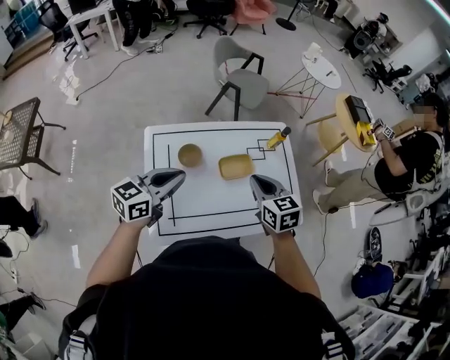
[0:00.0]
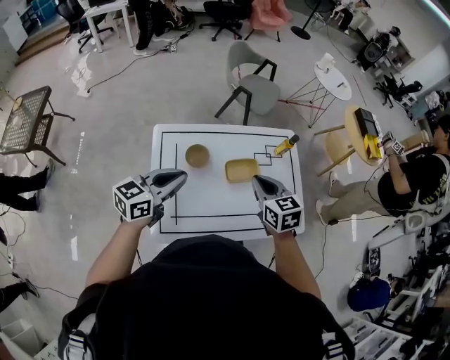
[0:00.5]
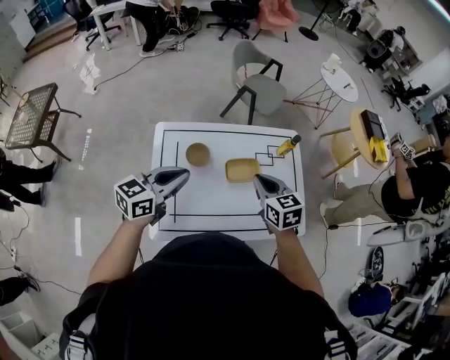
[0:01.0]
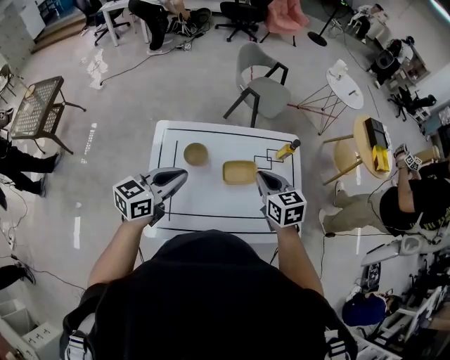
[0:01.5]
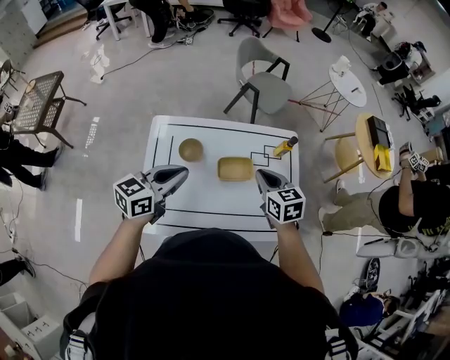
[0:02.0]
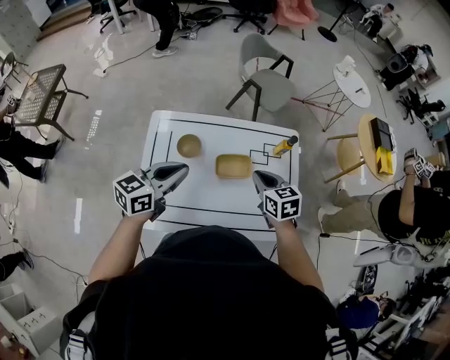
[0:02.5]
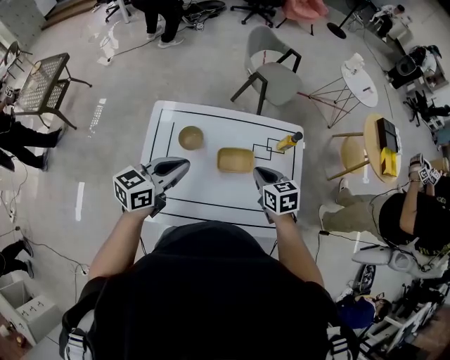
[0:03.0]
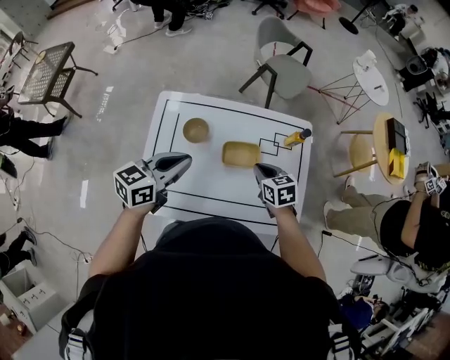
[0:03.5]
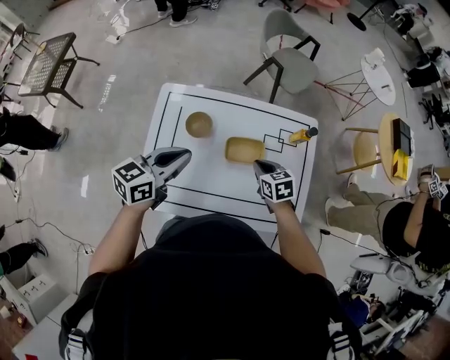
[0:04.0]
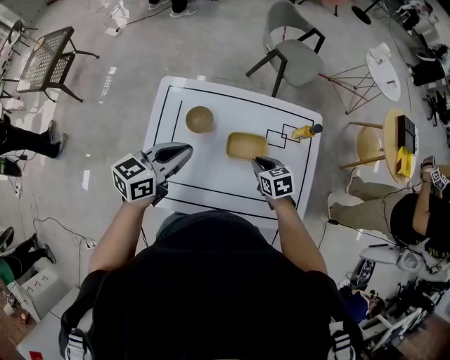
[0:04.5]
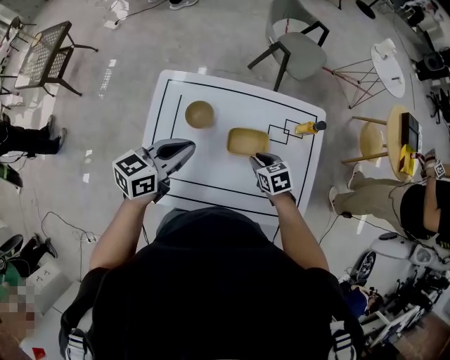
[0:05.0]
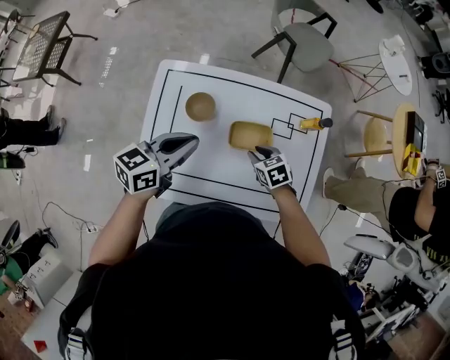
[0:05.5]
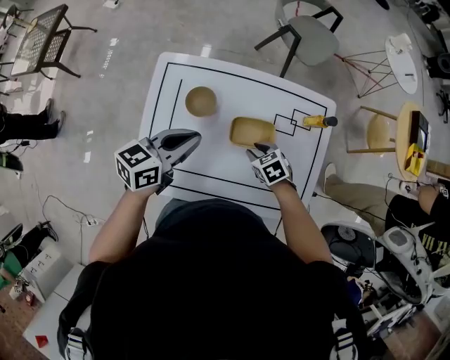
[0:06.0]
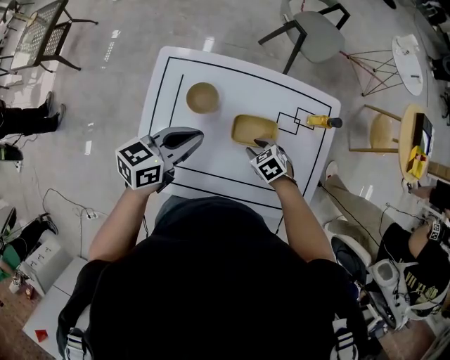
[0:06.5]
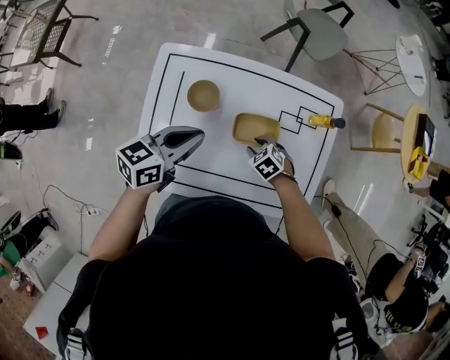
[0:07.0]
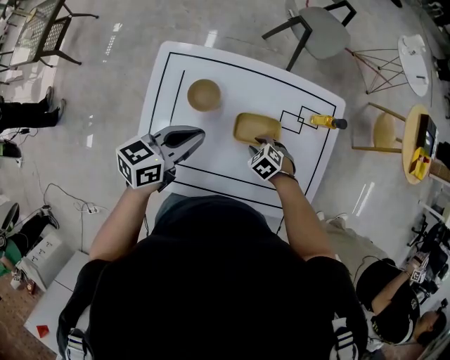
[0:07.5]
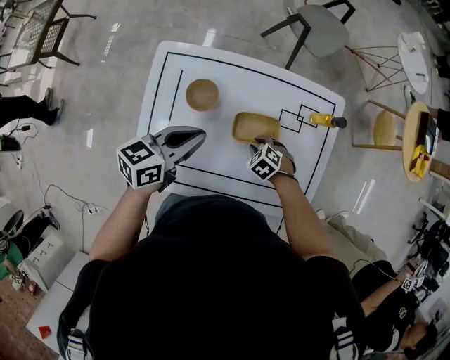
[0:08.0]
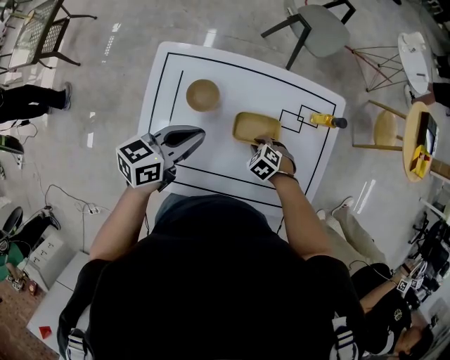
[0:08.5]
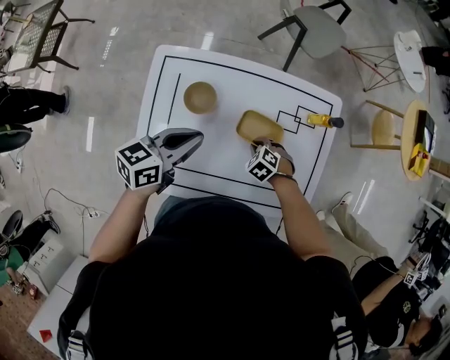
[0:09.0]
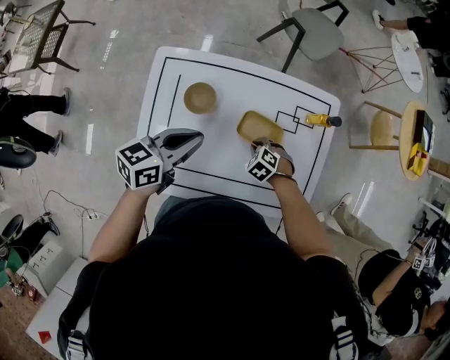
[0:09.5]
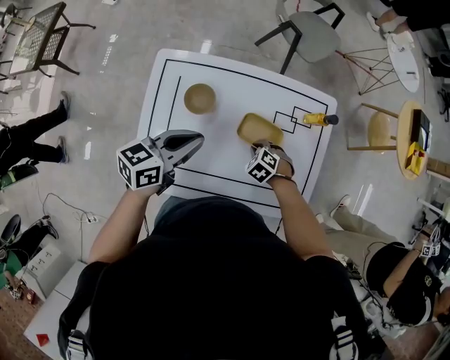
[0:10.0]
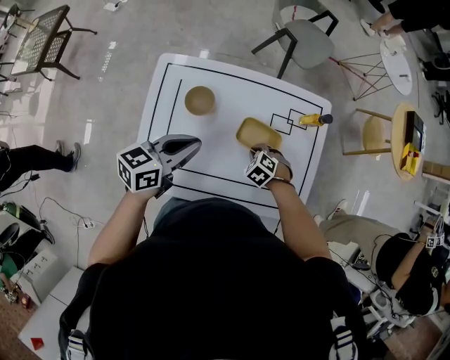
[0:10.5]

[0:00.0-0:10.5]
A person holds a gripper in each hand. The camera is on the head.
0.0 to 2.0 s: The left gripper moves to the right, about 5 cm. The right gripper heads forward and to the right, covering some 10 cm.
2.0 to 4.0 s: The right gripper is displaced downward by approximately 15 cm.
4.0 to 6.5 s: The left gripper shifts roughly 5 cm downward. Meanwhile the right gripper goes approximately 10 cm downward, turns by about 30 degrees, and opens.
6.5 to 8.5 s: There are only small adjustments of the grippers.
8.5 to 10.5 s: The grippers stay close to where they were, moving slightly.

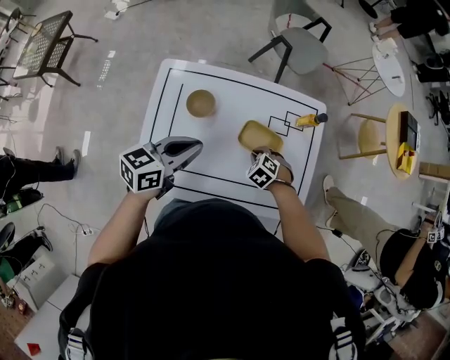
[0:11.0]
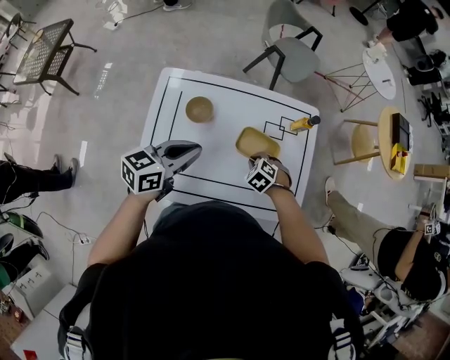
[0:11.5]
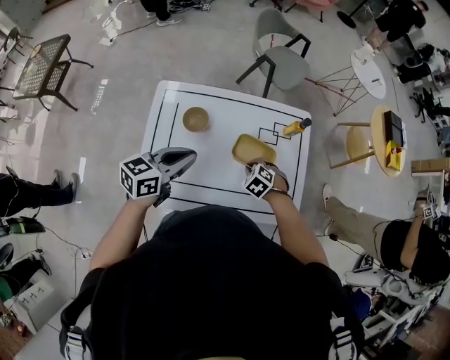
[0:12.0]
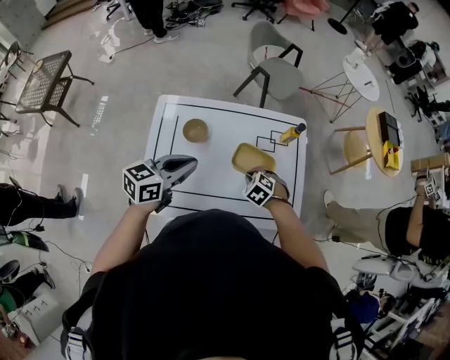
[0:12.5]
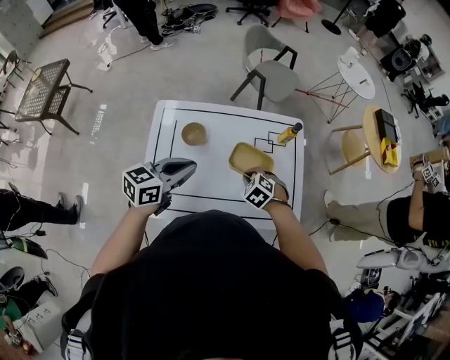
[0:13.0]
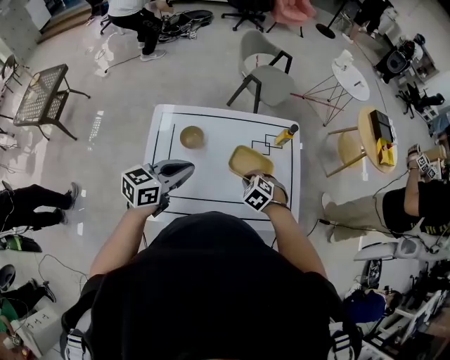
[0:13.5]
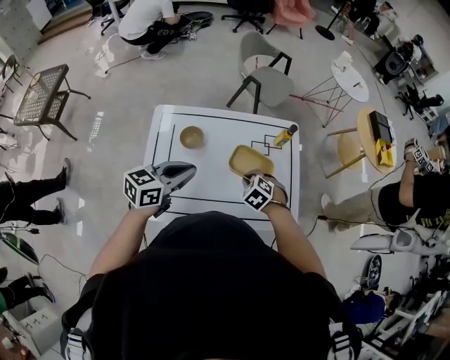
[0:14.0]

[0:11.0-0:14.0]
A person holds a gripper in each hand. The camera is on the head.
11.0 to 12.5 s: The right gripper goes about 5 cm upward; the left gripper ends up about 5 cm from where it was.
12.5 to 14.0 s: The grippers stay close to where they were, moving slightly.

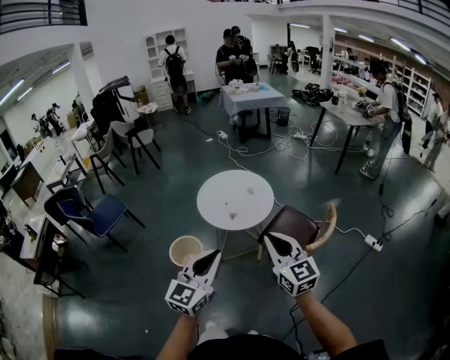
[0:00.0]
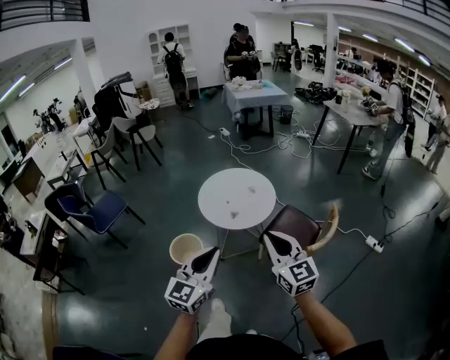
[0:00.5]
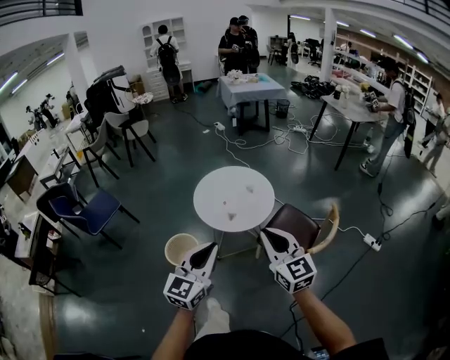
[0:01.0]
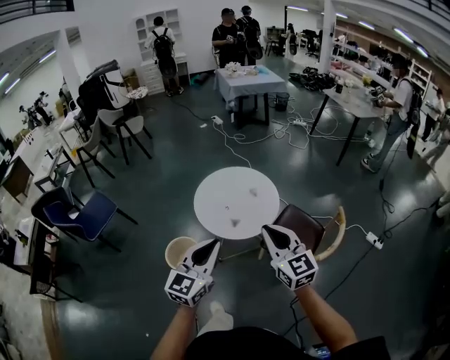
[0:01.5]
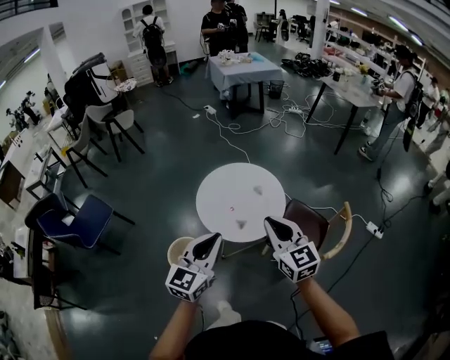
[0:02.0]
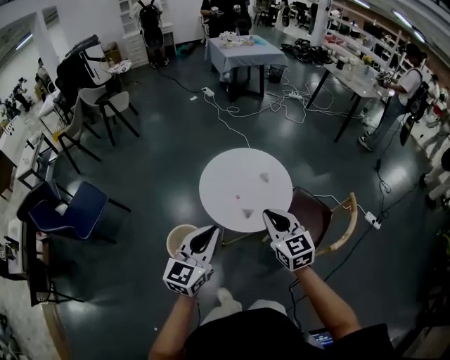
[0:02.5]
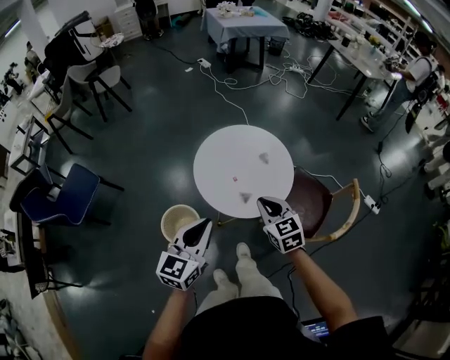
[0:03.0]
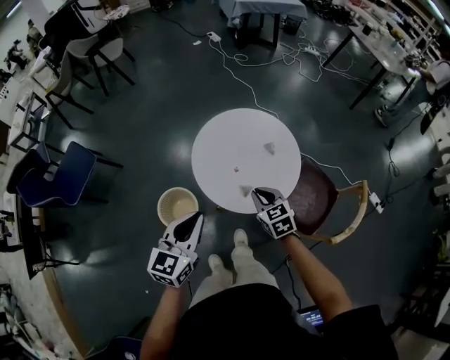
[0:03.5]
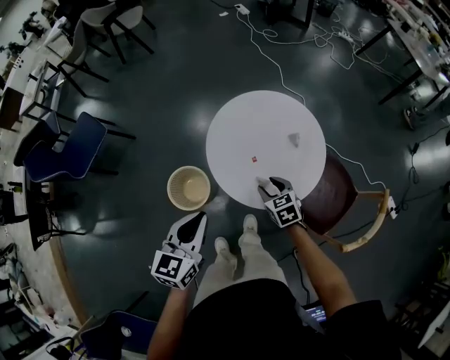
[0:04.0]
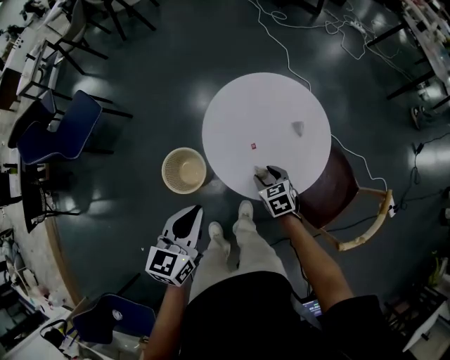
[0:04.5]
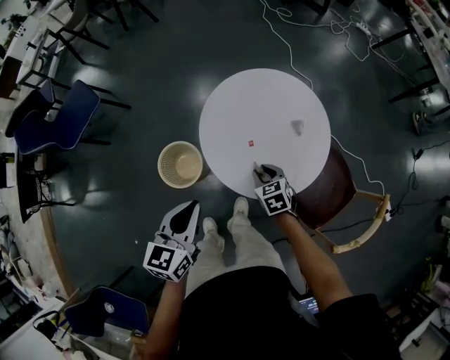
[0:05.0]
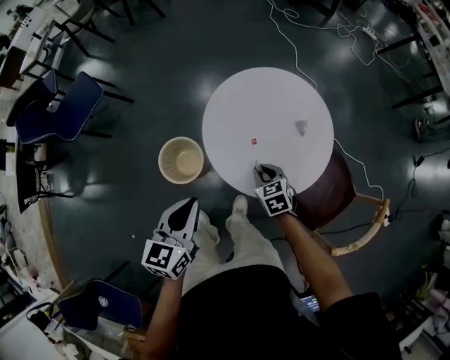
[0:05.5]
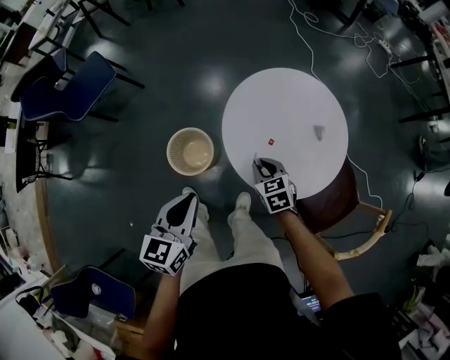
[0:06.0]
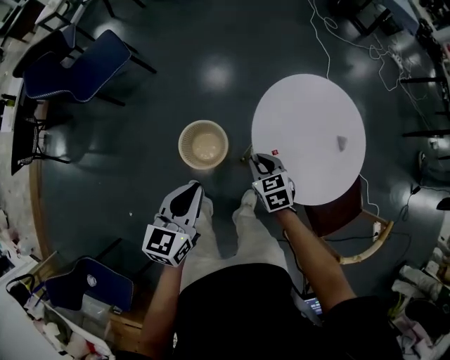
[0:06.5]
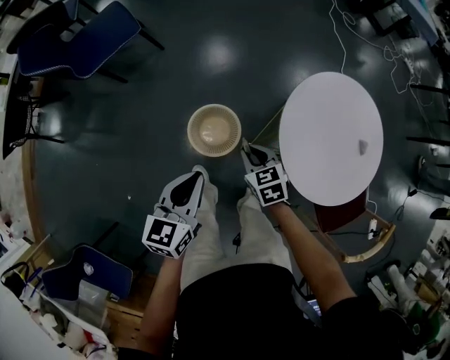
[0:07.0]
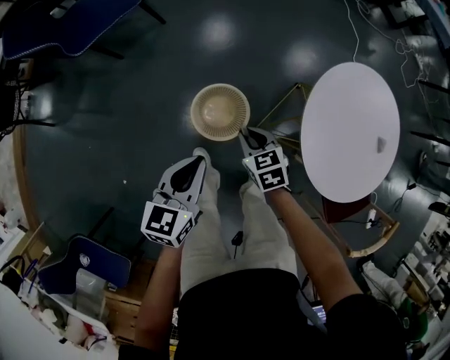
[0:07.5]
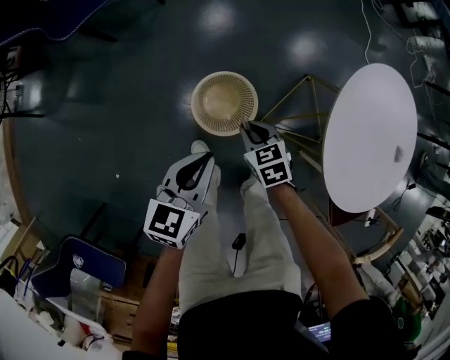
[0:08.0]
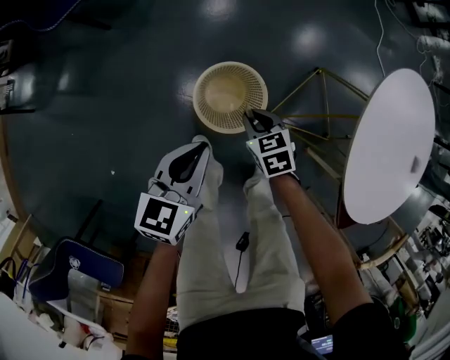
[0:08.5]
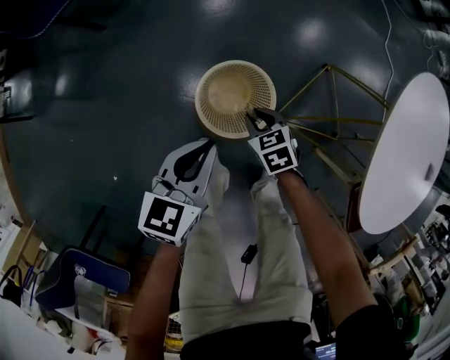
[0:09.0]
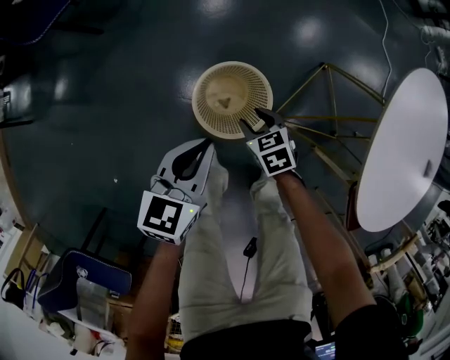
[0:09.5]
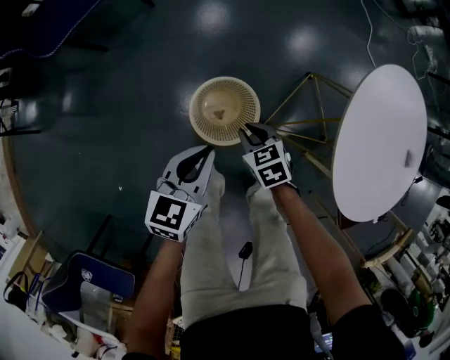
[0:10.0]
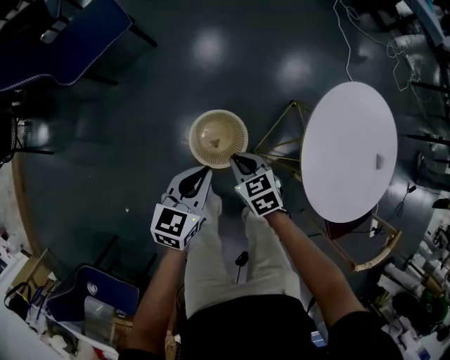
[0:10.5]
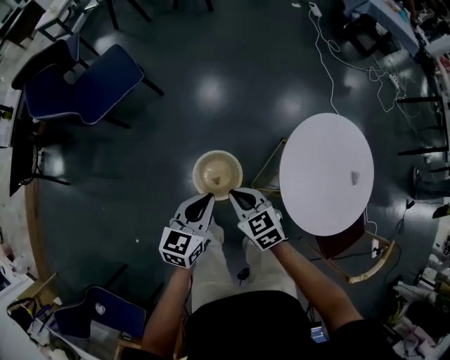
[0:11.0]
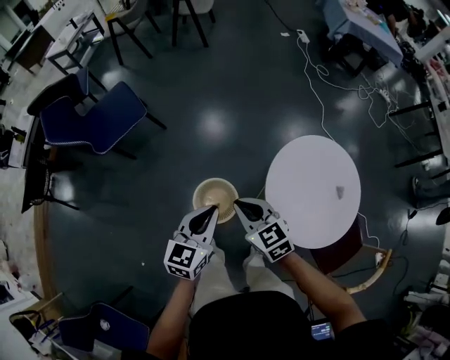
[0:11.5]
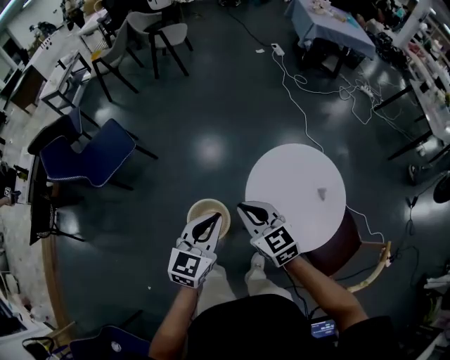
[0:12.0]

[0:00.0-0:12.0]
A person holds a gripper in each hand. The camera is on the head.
0.0 to 2.0 s: Both grippers move forward, about 30 cm.
2.0 to 4.0 s: The left gripper heads downward, forward and to the left, covering some 30 cm, and rotates about 30 degrees. Meanwhile the right gripper shifts roughly 50 cm downward and forward, tilts its fingers approximately 40 degrees downward, and opens up.
4.0 to 6.0 s: The right gripper shifts approximately 10 cm to the left, and closes its fingers, while the left gripper heads to the left and downward, covering approximately 10 cm.
6.0 to 8.0 s: The right gripper travels to the left and downward by approximately 40 cm, while the left gripper goes some 35 cm downward, to the left and forward.
8.0 to 10.0 s: The left gripper goes roughly 10 cm downward and forward. The right gripper moves downward, approximately 5 cm, and opens, then closes once more.
10.0 to 12.0 s: The left gripper heads upward and to the right, covering approximately 50 cm, and turns by roughly 30 degrees; the right gripper travels upward by roughly 50 cm, and angles its fingers upward, by some 30 degrees.

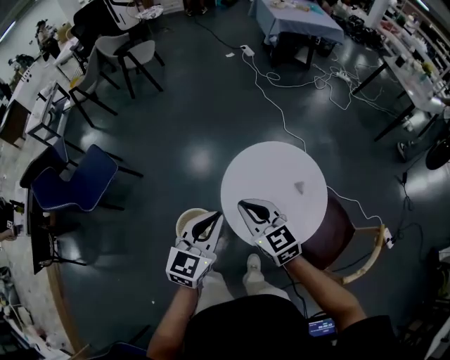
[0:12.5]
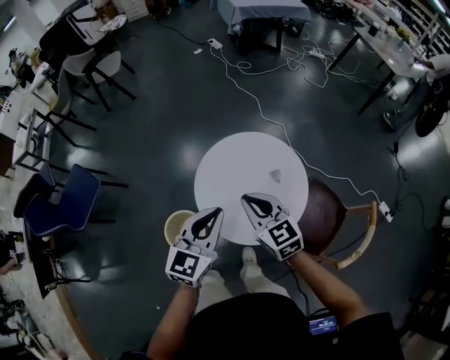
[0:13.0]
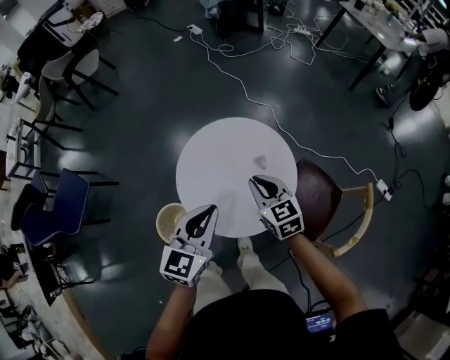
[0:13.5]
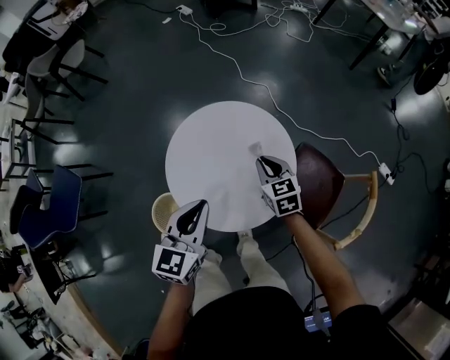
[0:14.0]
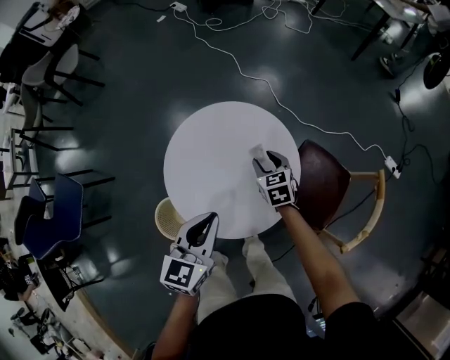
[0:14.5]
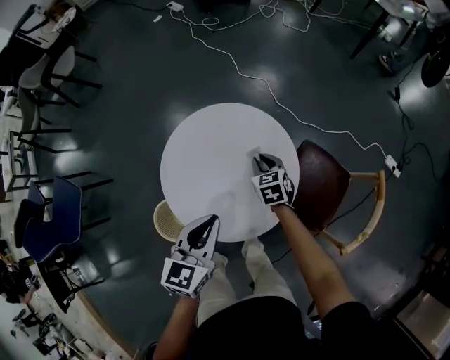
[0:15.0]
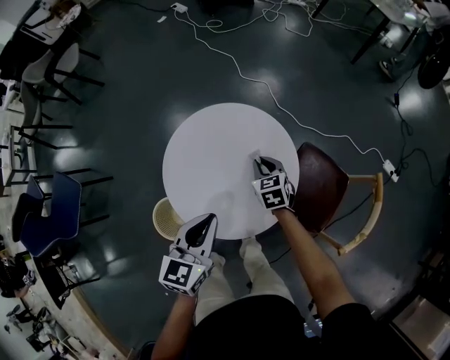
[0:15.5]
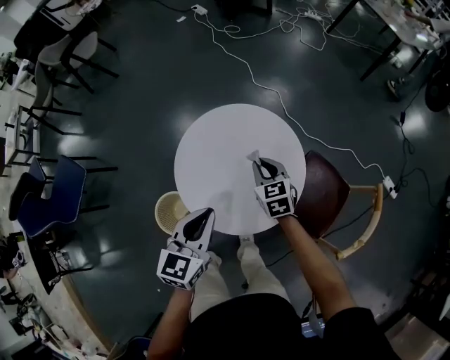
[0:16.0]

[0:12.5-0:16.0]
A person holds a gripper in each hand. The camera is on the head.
12.5 to 14.5 s: The left gripper goes roughly 25 cm to the right and downward, while the right gripper goes roughly 50 cm to the right, downward and forward, rotates about 40 degrees, and opens.
14.5 to 16.0 s: The right gripper moves upward, some 5 cm, and closes up.
